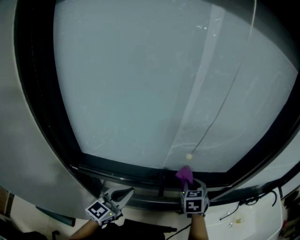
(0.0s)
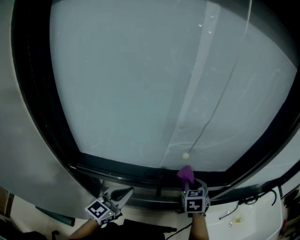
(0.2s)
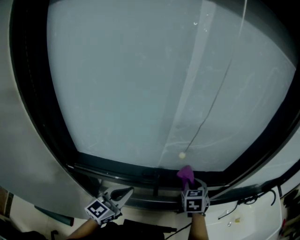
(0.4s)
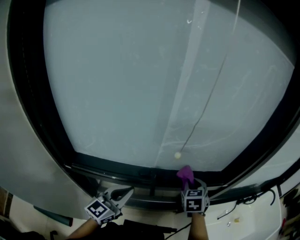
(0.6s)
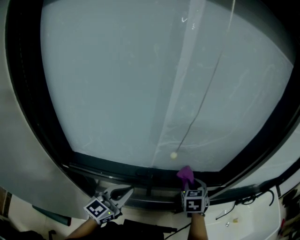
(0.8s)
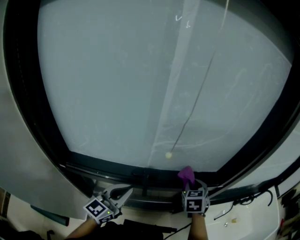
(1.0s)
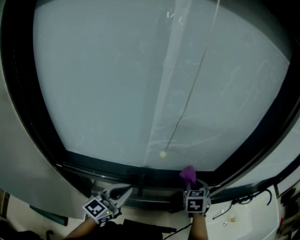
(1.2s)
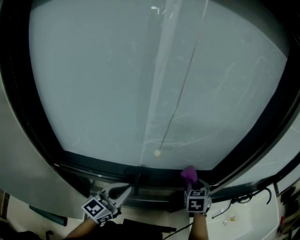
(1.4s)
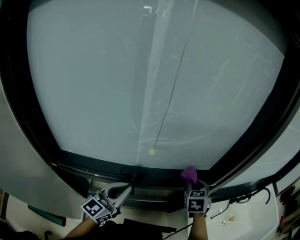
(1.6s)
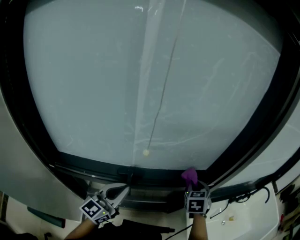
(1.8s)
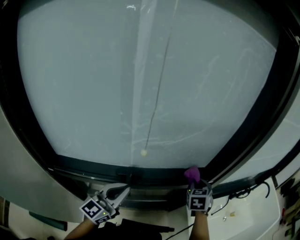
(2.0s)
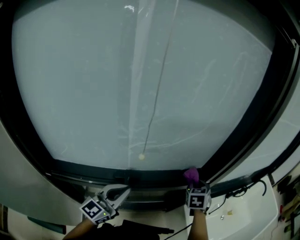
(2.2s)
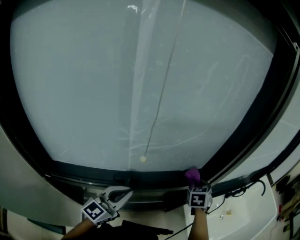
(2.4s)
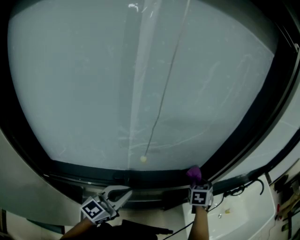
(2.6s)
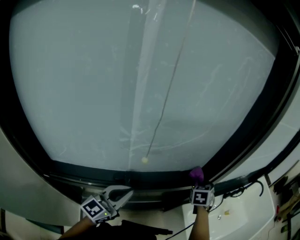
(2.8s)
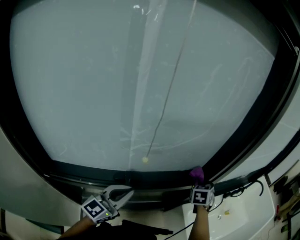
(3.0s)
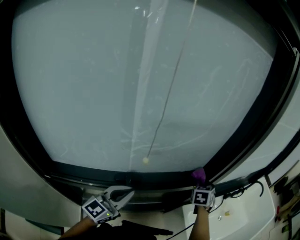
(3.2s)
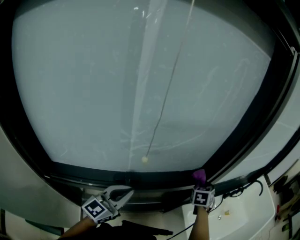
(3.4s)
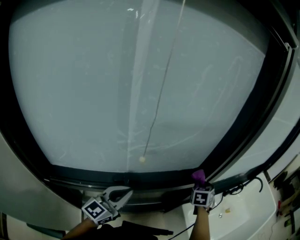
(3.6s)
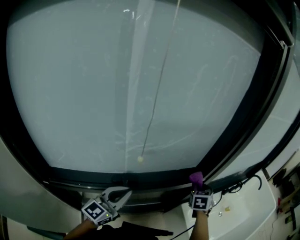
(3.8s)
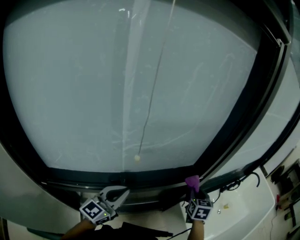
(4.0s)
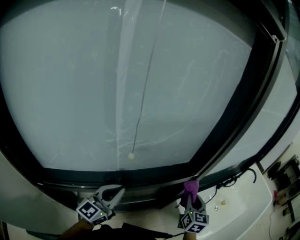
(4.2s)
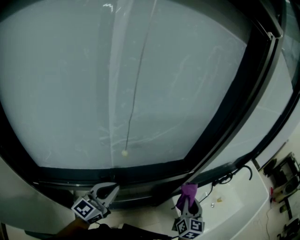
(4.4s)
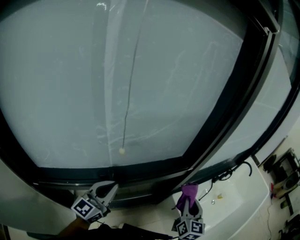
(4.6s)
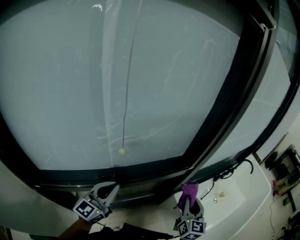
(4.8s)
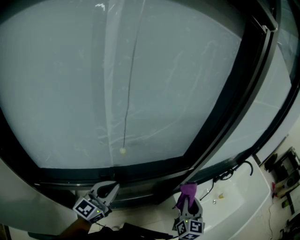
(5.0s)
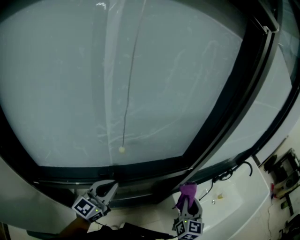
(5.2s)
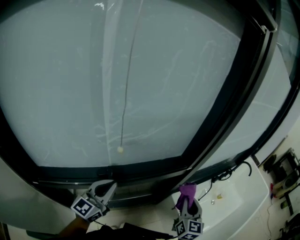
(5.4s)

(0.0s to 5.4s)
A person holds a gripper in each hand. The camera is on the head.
0.0s - 1.4s: The left gripper shifts roughly 5 cm to the right; the right gripper goes approximately 10 cm to the right.
1.4s - 2.8s: The right gripper shifts about 10 cm to the right and forward.
2.8s - 4.0s: The right gripper shifts approximately 5 cm backward, and rotates roughly 20 degrees.
4.0s - 5.4s: The right gripper heads backward, covering roughly 10 cm, and changes its angle by some 20 degrees.

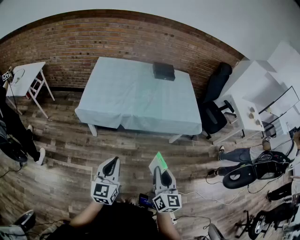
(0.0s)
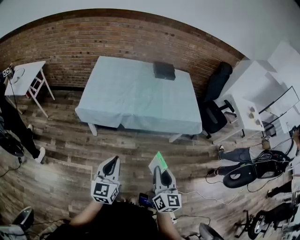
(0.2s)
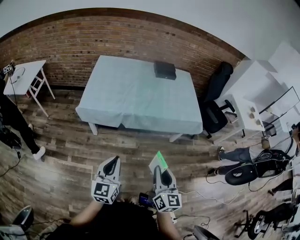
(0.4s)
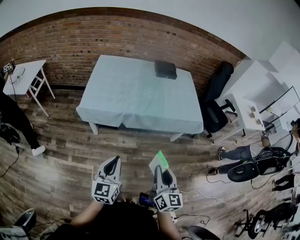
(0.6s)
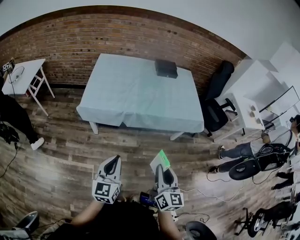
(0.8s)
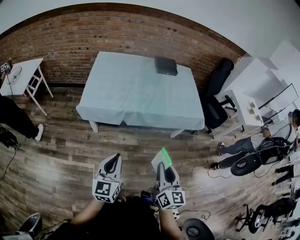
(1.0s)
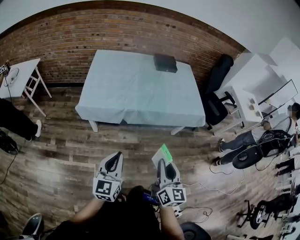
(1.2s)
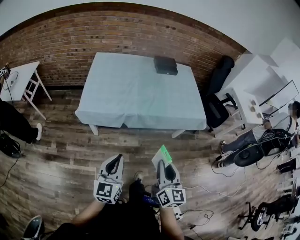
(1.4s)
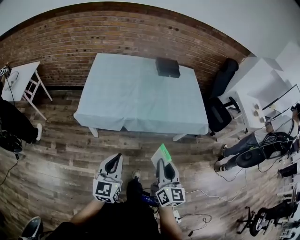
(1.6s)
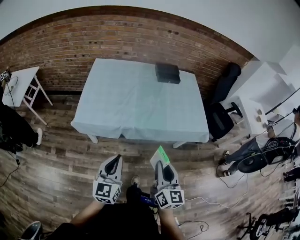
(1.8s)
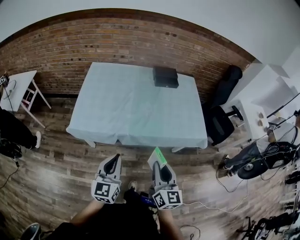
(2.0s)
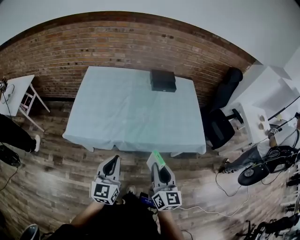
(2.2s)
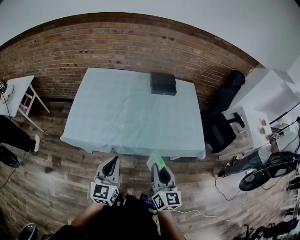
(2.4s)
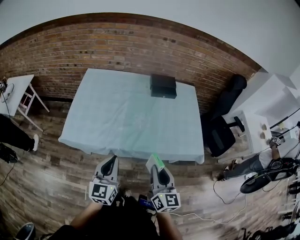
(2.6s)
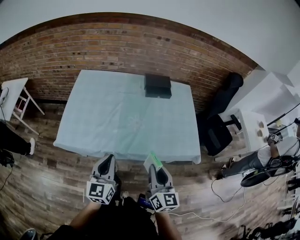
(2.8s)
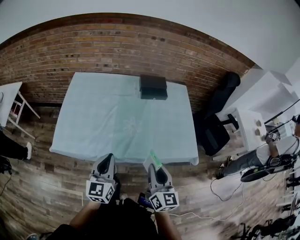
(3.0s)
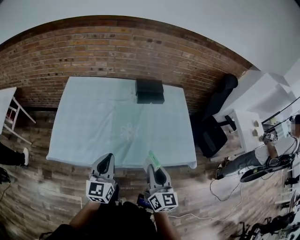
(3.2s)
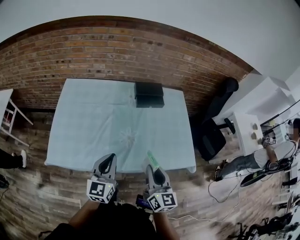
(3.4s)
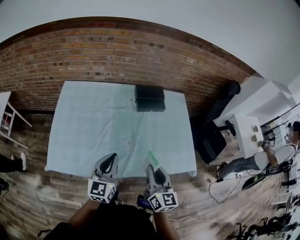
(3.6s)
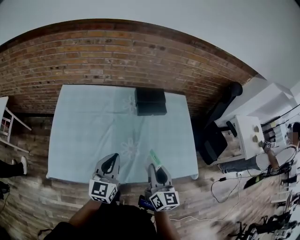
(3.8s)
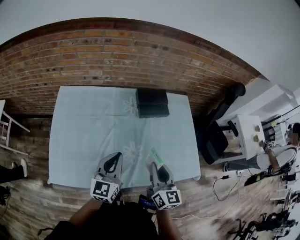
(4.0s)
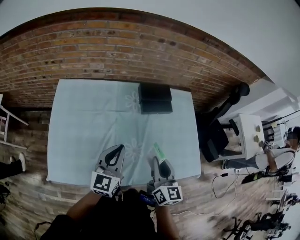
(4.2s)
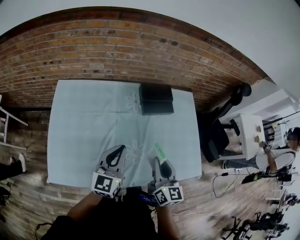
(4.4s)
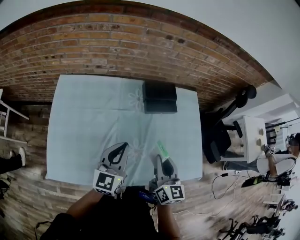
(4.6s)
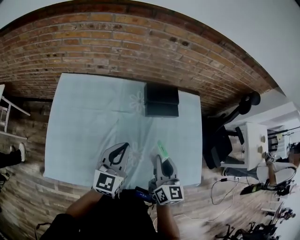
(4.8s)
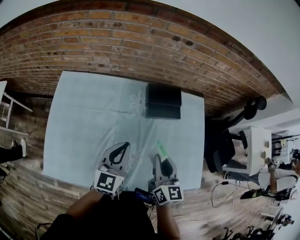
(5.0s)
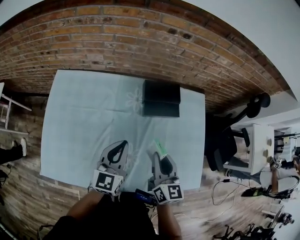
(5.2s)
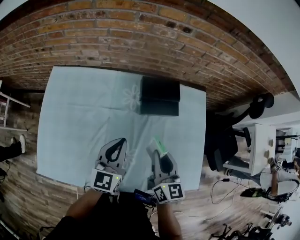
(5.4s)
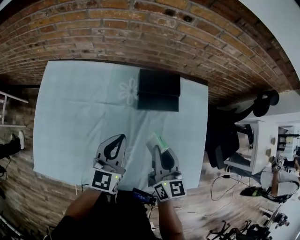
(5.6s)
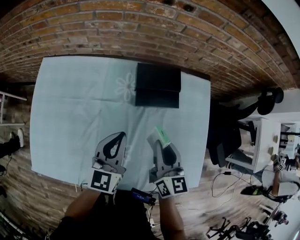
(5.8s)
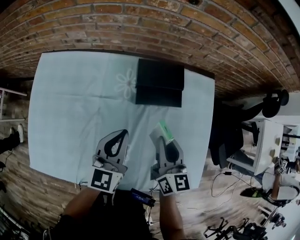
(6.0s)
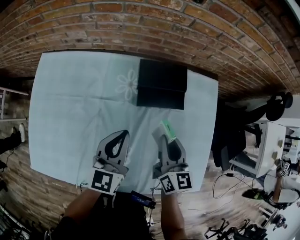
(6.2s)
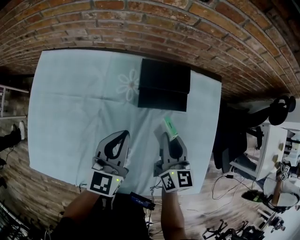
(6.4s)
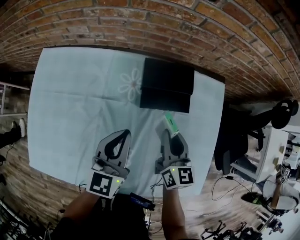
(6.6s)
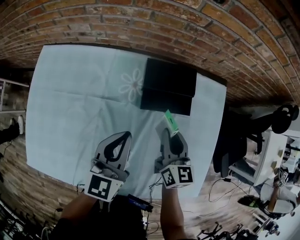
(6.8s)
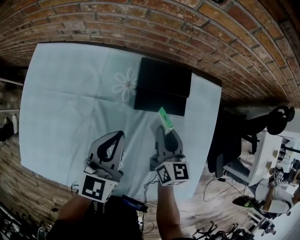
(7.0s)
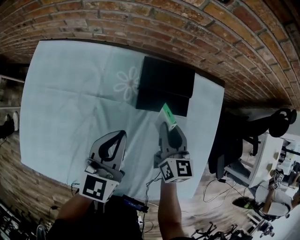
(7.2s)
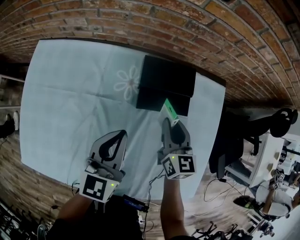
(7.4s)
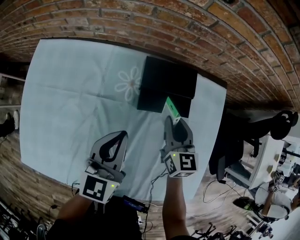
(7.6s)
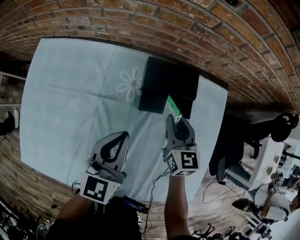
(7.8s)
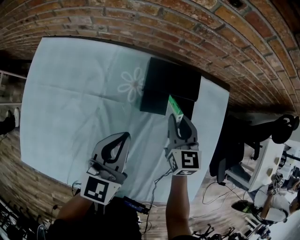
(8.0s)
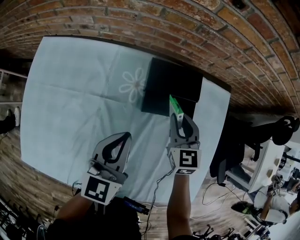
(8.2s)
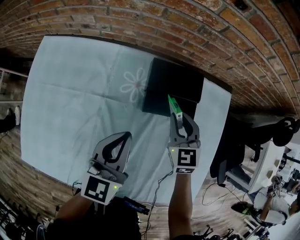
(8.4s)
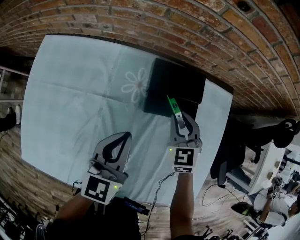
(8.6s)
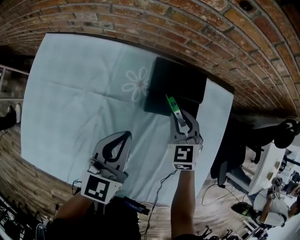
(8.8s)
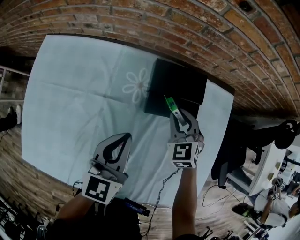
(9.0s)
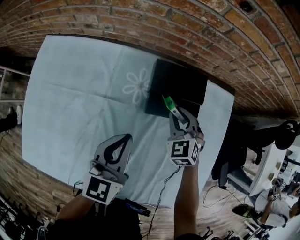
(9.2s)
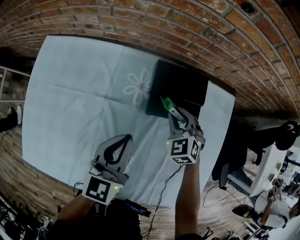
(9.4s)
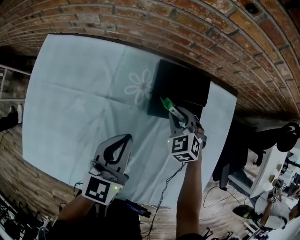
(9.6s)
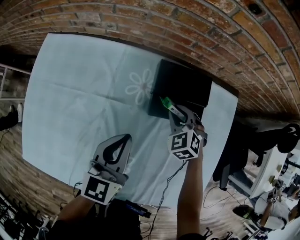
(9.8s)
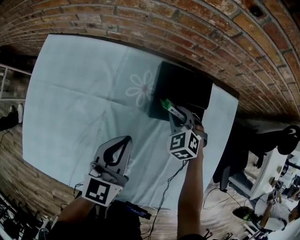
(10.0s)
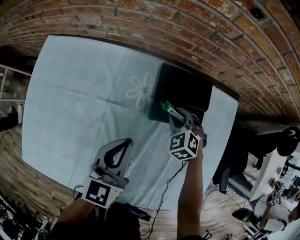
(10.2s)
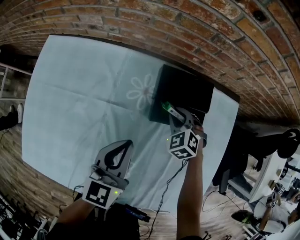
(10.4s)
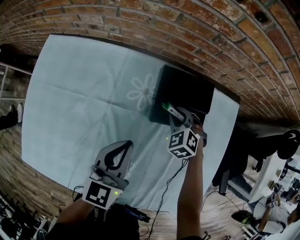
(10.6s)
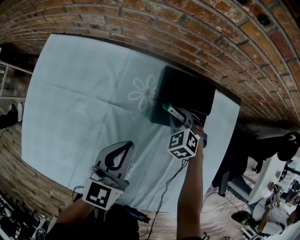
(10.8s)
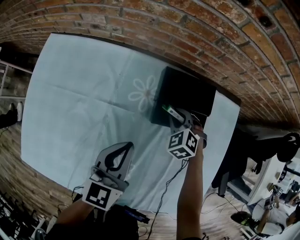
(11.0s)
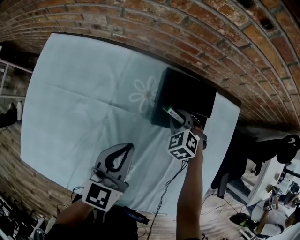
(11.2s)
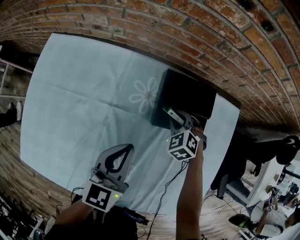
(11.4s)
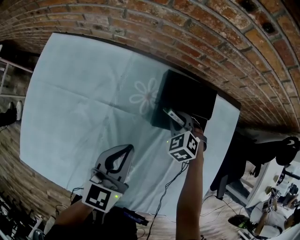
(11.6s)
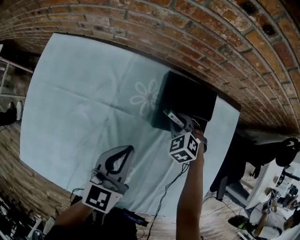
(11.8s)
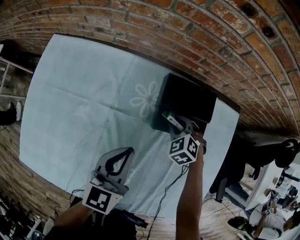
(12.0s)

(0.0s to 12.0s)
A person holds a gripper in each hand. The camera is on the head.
0.0s - 1.6s: Both grippers move forward, about 10 cm.
1.6s - 3.0s: The two grippers go roughly 30 cm forward.
3.0s - 4.4s: Both grippers travel together forward, about 30 cm.
4.4s - 6.0s: The left gripper is displaced forward, to the right and downward by some 25 cm. The right gripper travels forward, downward and to the right by some 25 cm.
6.0s - 7.6s: The right gripper travels forward and downward by roughly 15 cm.
7.6s - 9.0s: The right gripper changes place by approximately 5 cm, and swivels approximately 40 degrees.
9.0s - 10.4s: The right gripper shifts about 10 cm downward, and rotates some 20 degrees.
10.4s - 12.0s: The grippers make only small movements.

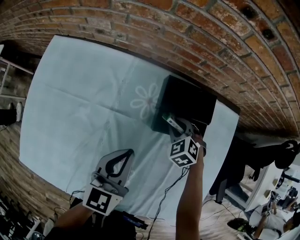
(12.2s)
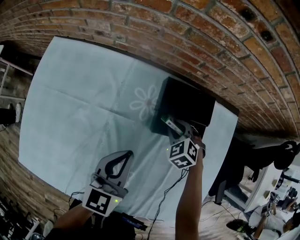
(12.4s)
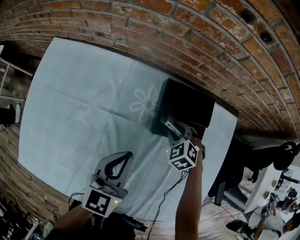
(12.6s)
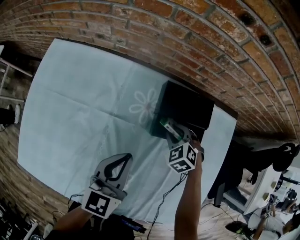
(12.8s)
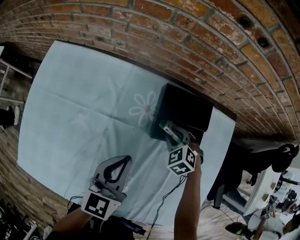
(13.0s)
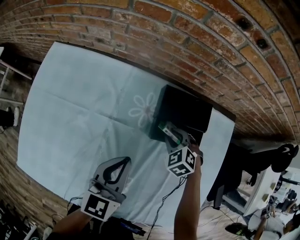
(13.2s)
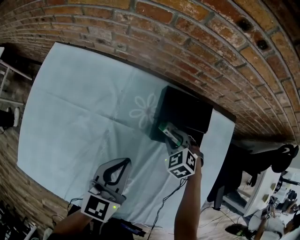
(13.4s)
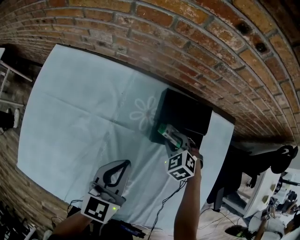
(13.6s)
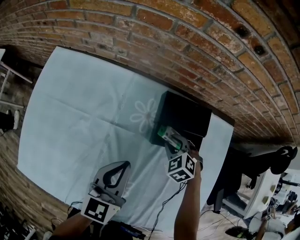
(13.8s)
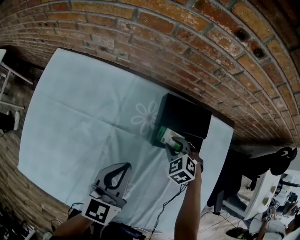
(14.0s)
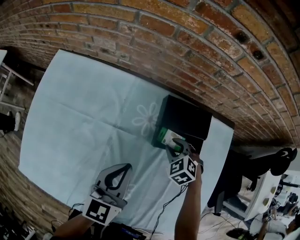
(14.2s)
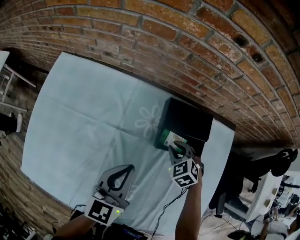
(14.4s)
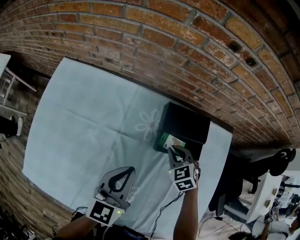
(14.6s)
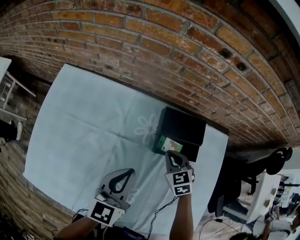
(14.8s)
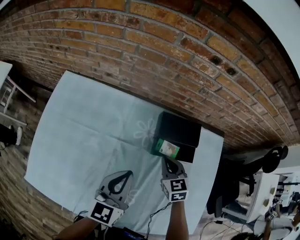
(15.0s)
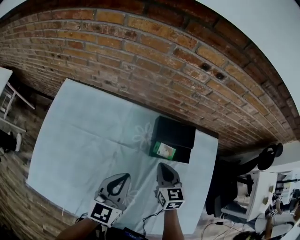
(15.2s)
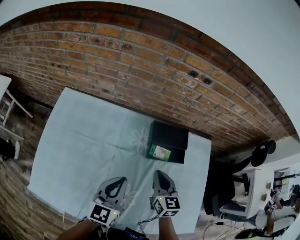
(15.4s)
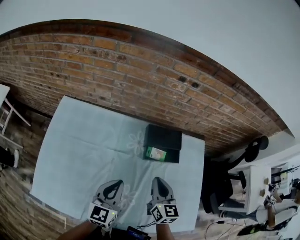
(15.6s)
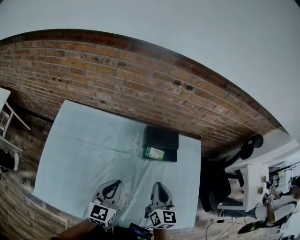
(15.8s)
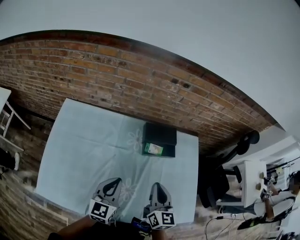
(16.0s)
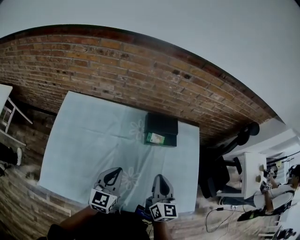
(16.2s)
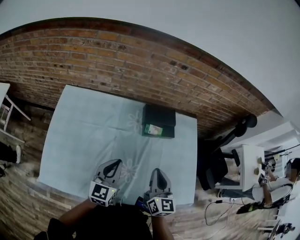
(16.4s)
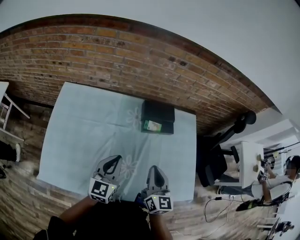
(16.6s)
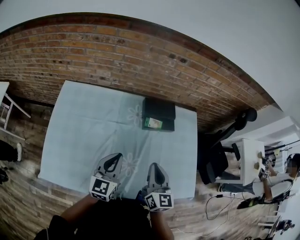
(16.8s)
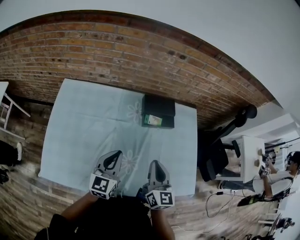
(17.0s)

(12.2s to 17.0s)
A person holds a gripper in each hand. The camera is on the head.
12.2s - 13.8s: The grippers move only a little.
13.8s - 15.4s: The right gripper goes some 20 cm upward and backward, angles its fingers upward, by approximately 40 degrees, and closes its fingers, while the left gripper goes about 10 cm upward and backward.
15.4s - 17.0s: The left gripper heads backward, covering roughly 10 cm, while the right gripper shifts some 20 cm backward and upward.

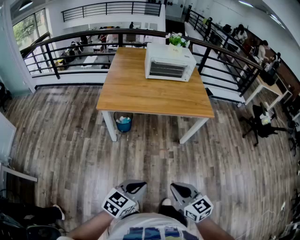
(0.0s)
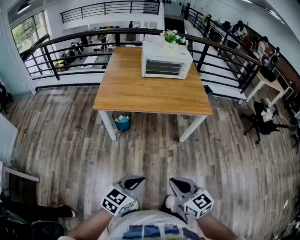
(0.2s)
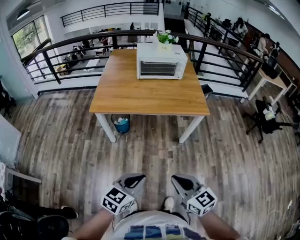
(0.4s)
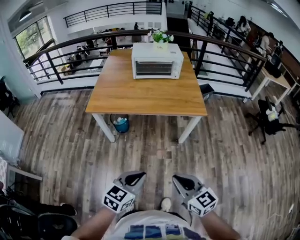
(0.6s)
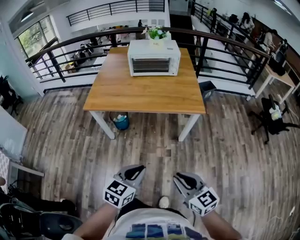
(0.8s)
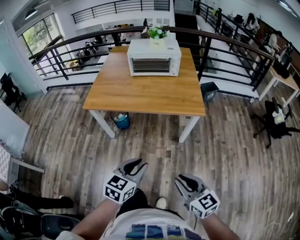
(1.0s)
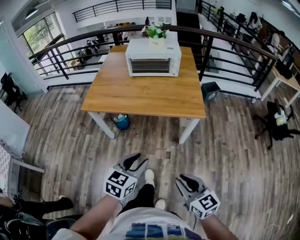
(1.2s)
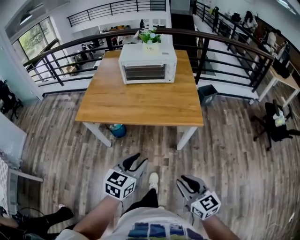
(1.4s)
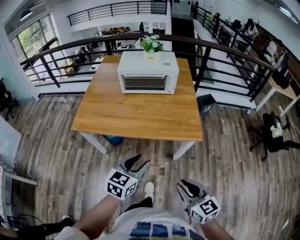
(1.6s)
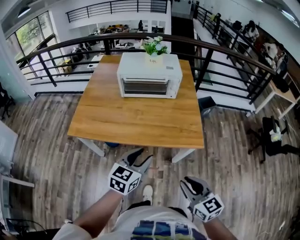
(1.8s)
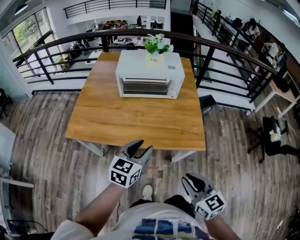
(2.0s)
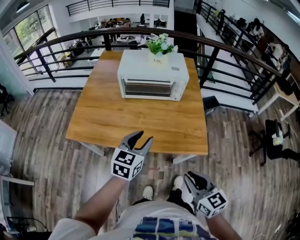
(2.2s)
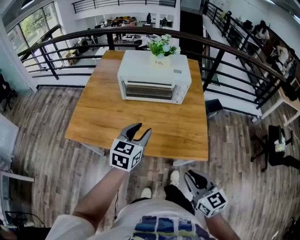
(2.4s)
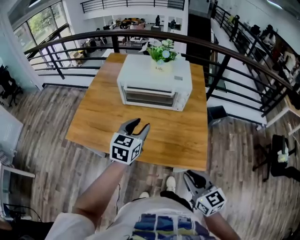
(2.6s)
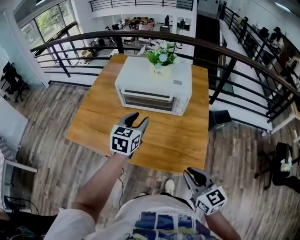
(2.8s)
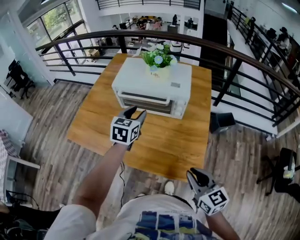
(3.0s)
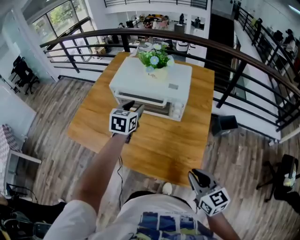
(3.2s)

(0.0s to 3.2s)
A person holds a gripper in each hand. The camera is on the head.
0.0s - 1.6s: Both grippers are carried forward and to the right, approximately 40 cm. The left gripper opens up.
1.6s - 3.2s: Both grippers are carried forward, some 50 cm. The left gripper rotates roughly 30 degrees.
